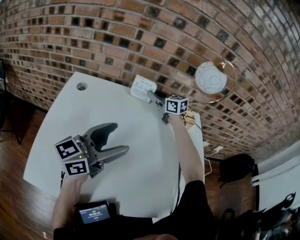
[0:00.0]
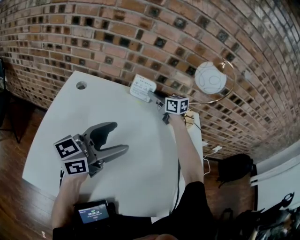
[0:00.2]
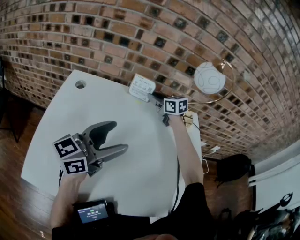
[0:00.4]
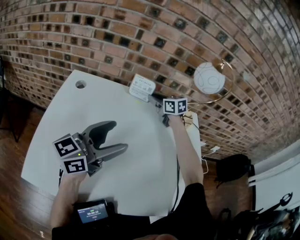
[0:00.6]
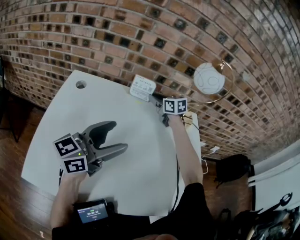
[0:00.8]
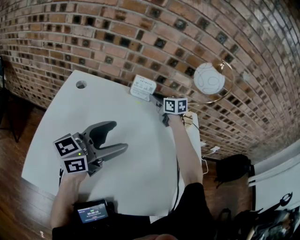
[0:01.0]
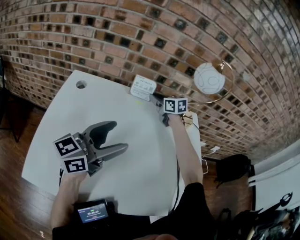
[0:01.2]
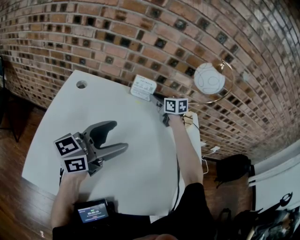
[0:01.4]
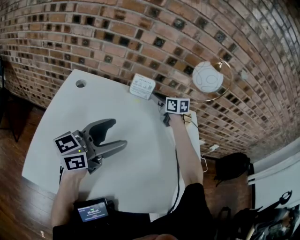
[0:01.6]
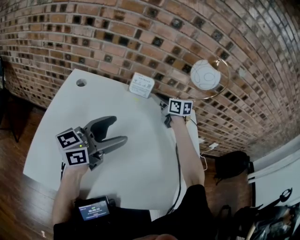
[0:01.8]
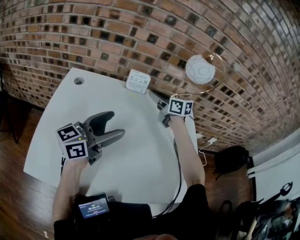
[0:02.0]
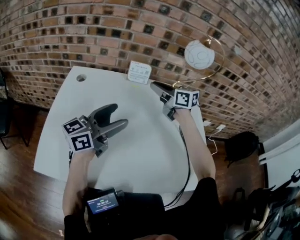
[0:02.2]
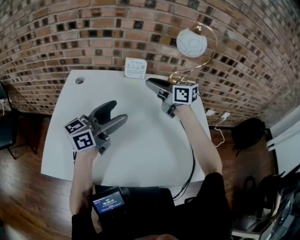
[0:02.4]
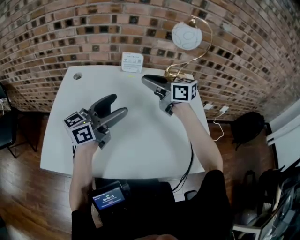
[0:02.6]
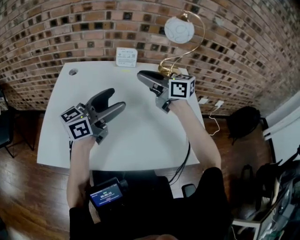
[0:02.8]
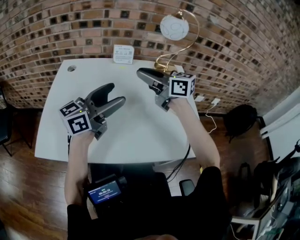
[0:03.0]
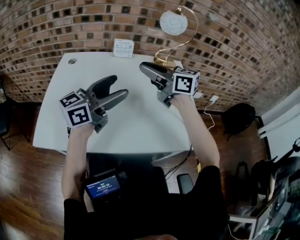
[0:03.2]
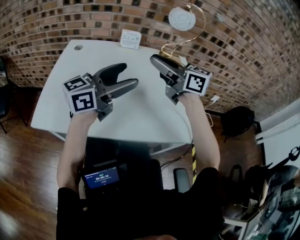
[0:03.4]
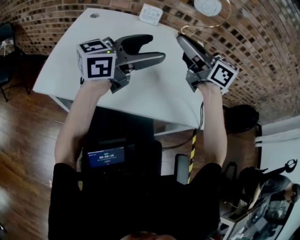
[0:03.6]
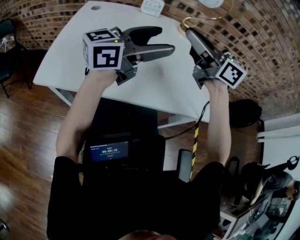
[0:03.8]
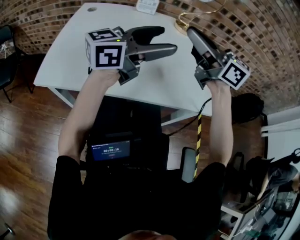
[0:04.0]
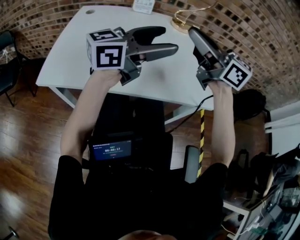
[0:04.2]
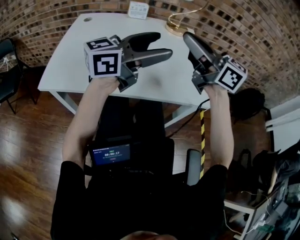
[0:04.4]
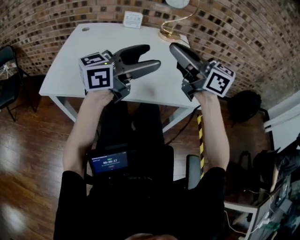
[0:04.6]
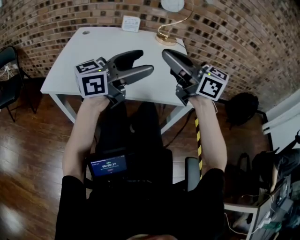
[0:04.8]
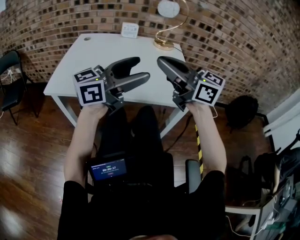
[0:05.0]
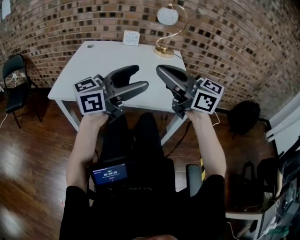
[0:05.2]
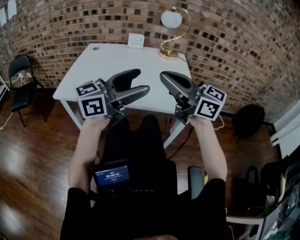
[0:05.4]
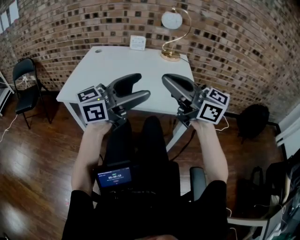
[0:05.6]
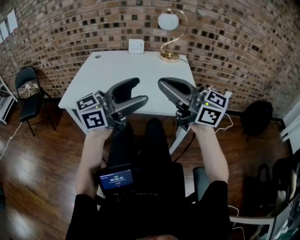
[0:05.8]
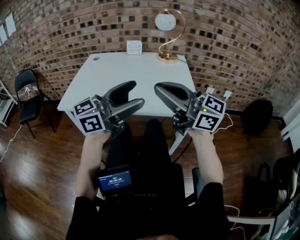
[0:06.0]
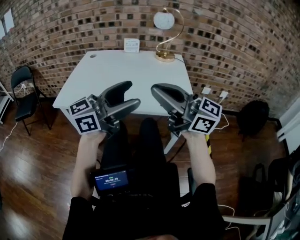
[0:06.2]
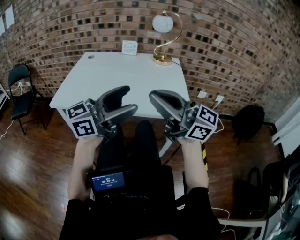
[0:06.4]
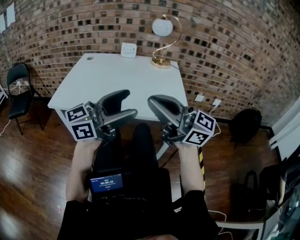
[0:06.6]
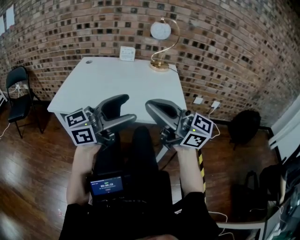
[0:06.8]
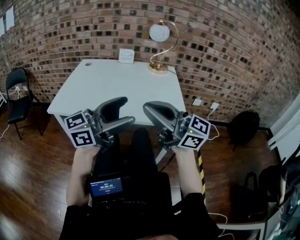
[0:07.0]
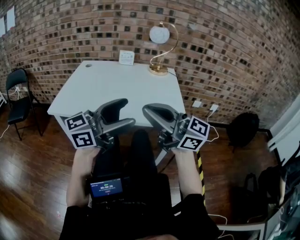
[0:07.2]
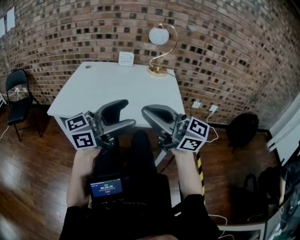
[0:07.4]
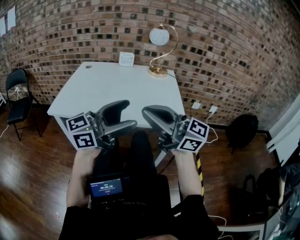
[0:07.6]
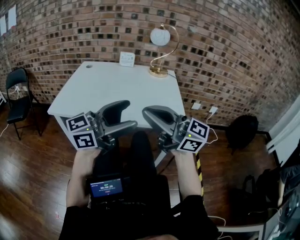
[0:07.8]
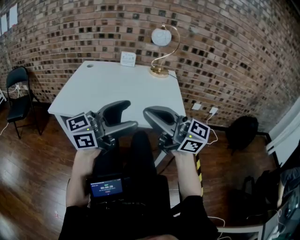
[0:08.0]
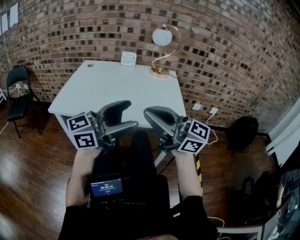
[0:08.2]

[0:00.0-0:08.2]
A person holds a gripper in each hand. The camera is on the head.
0:00.0 to 0:01.6: The grippers make only small movements.
0:01.6 to 0:03.2: The left gripper shifts about 10 cm backward and to the right. The right gripper heads backward and upward, covering some 35 cm, and rotates some 30 degrees.
0:03.2 to 0:05.0: The left gripper changes place by about 25 cm. The right gripper shifts by some 30 cm.
0:05.0 to 0:06.6: The left gripper shifts by approximately 5 cm, while the right gripper changes place by about 10 cm.
0:06.6 to 0:08.2: The grippers stay close to where they were, moving slightly.

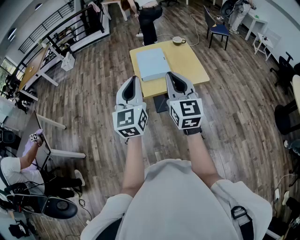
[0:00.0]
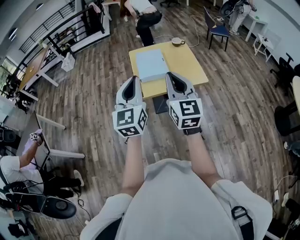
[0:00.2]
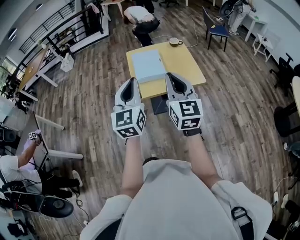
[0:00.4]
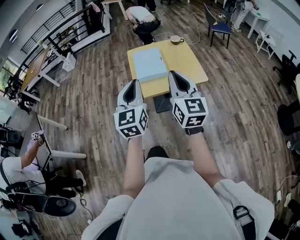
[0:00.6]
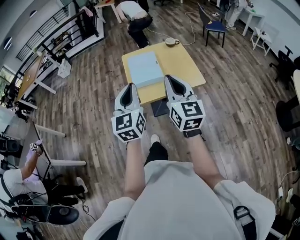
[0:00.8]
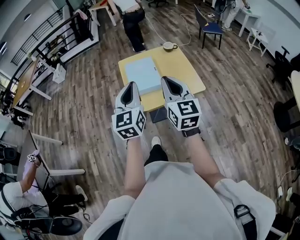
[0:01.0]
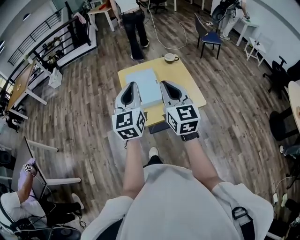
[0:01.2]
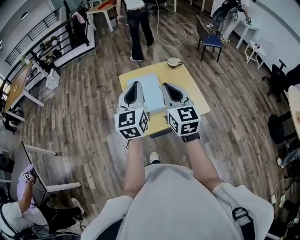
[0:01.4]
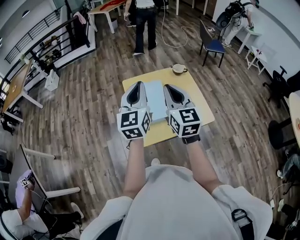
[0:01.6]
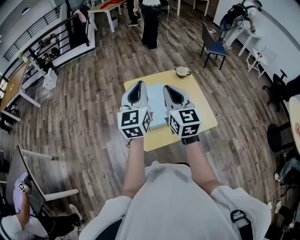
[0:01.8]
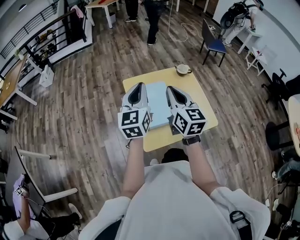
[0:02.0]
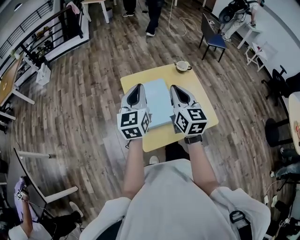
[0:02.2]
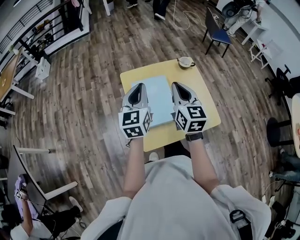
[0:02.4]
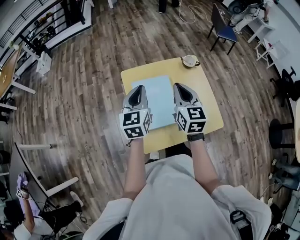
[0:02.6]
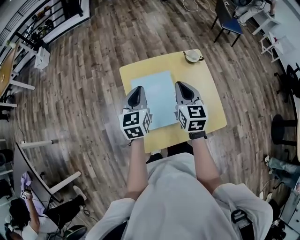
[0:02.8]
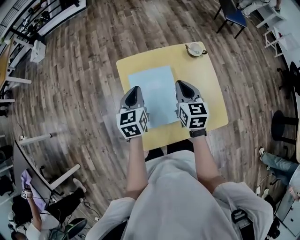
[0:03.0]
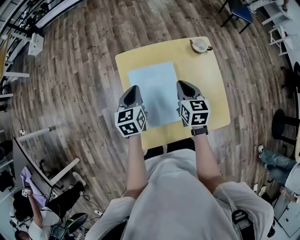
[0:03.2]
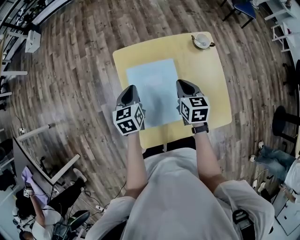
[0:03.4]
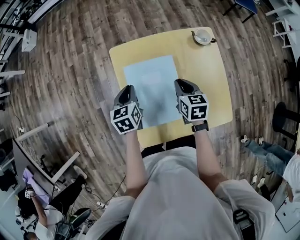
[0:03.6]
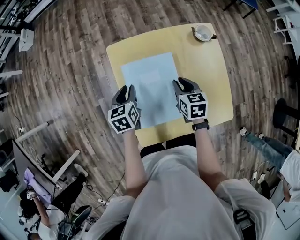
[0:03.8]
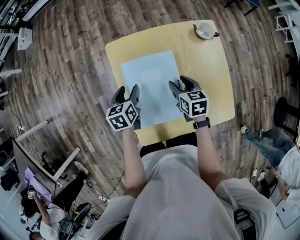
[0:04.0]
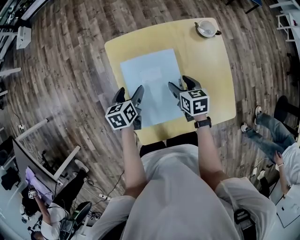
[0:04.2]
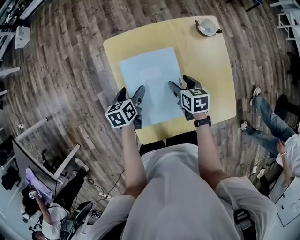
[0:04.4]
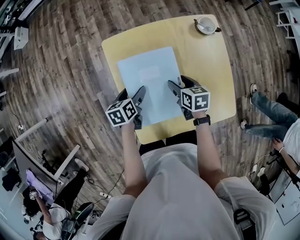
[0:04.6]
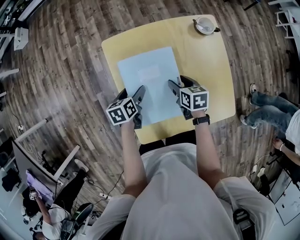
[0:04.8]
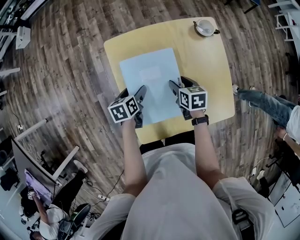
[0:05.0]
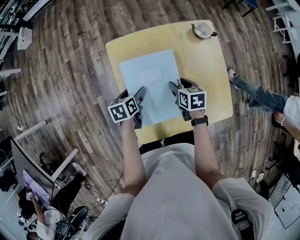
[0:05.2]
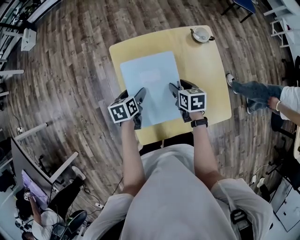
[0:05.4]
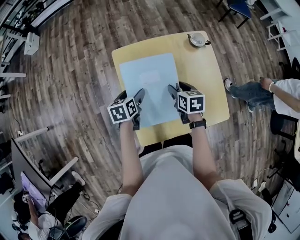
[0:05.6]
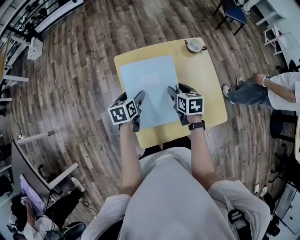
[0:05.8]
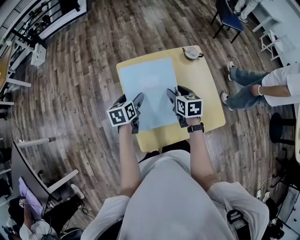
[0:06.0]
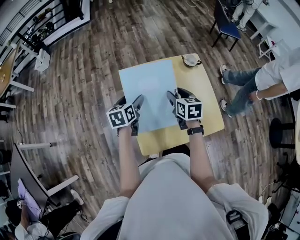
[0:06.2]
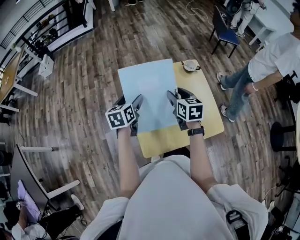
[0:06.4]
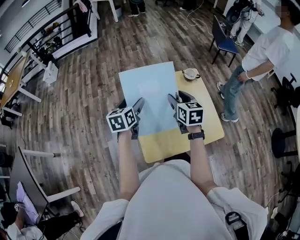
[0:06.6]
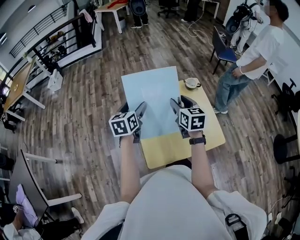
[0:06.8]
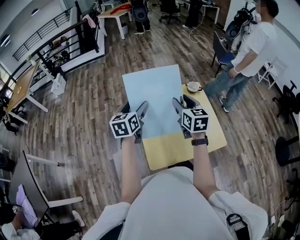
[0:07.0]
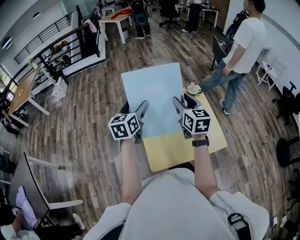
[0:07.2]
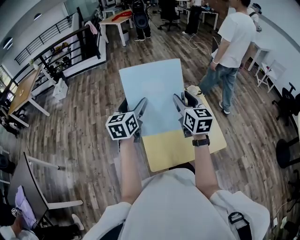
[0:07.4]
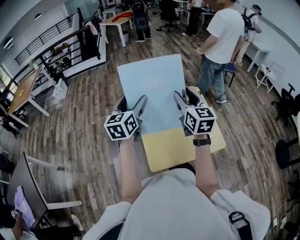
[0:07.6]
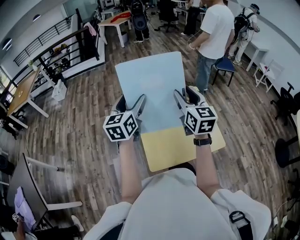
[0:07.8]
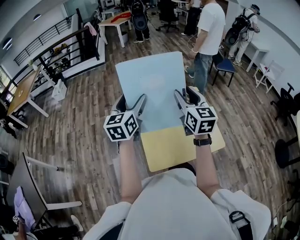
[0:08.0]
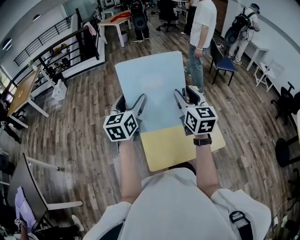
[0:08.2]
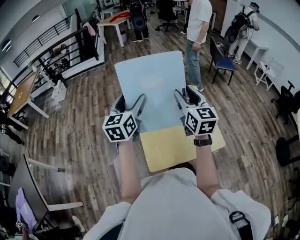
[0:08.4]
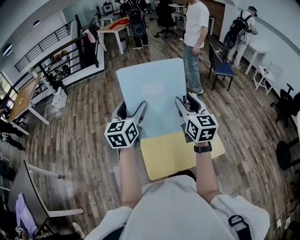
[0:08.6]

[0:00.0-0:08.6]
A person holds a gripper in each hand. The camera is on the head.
0:00.0 to 0:01.4: Both grippers travel together forward, about 25 cm.
0:01.4 to 0:02.8: The two grippers go roughly 30 cm forward and downward. The left gripper rotates about 20 degrees.
0:02.8 to 0:04.4: The grippers both shift downward by roughly 25 cm. The left gripper turns by roughly 40 degrees, and opens its fingers, while the right gripper points its fingers about 30 degrees further downward, and opens up.
0:04.4 to 0:05.8: Both grippers travel together upward, about 10 cm.
0:05.8 to 0:07.2: The grippers both shift upward by about 25 cm. The left gripper rotates roughly 30 degrees. The right gripper tips its fingers upward by about 30 degrees.
0:07.2 to 0:08.6: Both grippers move upward, approximately 10 cm.

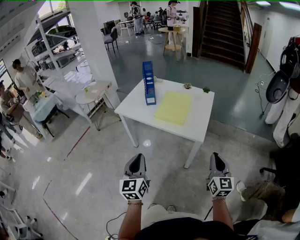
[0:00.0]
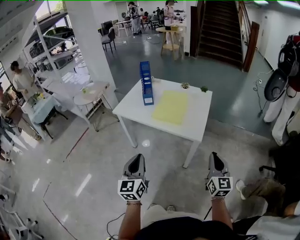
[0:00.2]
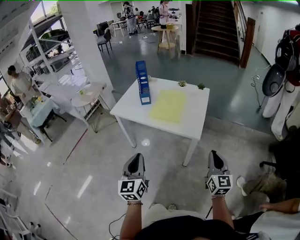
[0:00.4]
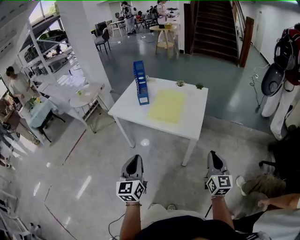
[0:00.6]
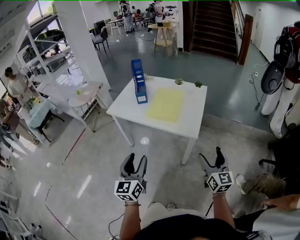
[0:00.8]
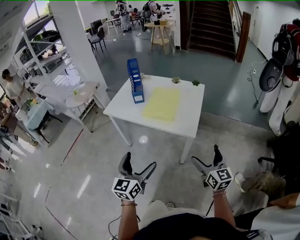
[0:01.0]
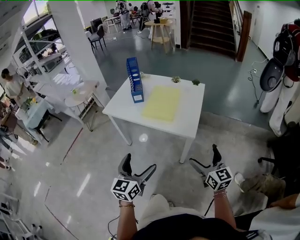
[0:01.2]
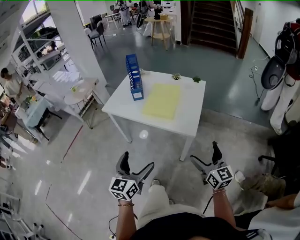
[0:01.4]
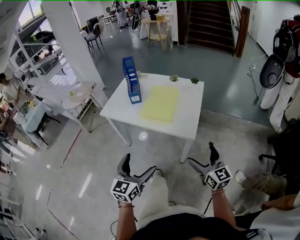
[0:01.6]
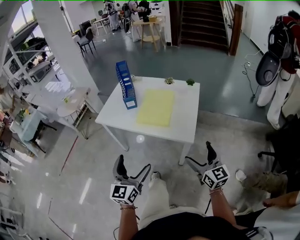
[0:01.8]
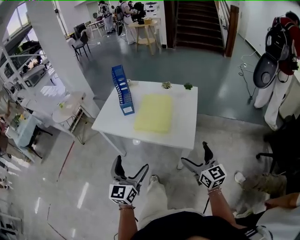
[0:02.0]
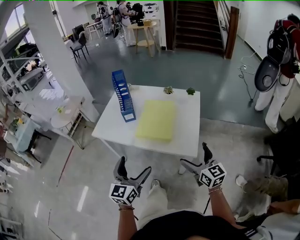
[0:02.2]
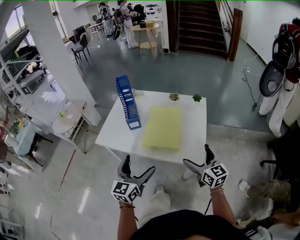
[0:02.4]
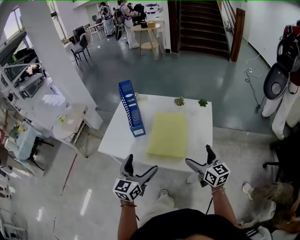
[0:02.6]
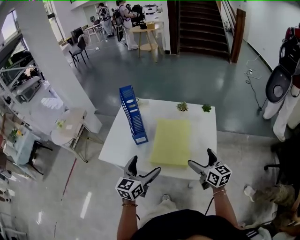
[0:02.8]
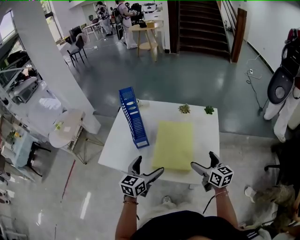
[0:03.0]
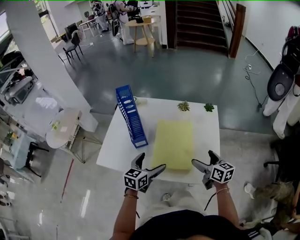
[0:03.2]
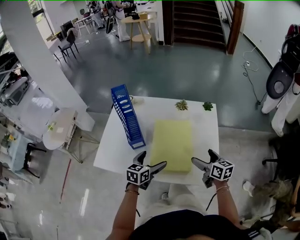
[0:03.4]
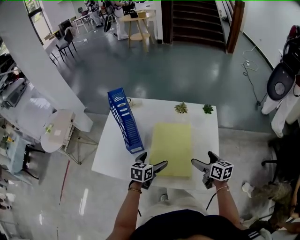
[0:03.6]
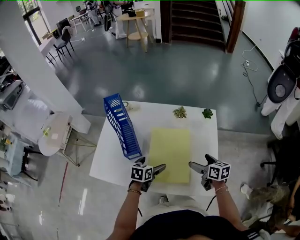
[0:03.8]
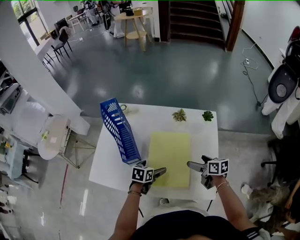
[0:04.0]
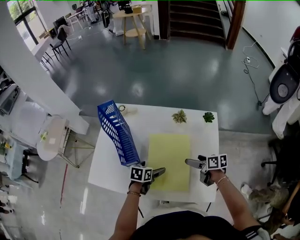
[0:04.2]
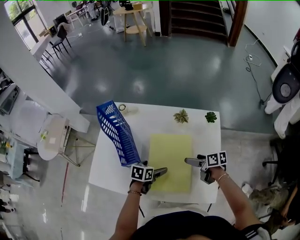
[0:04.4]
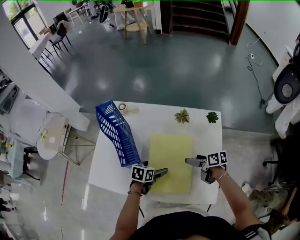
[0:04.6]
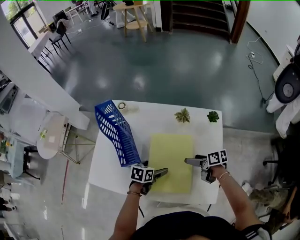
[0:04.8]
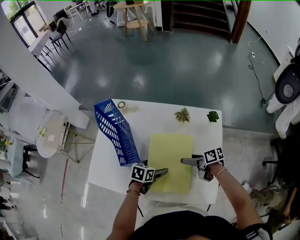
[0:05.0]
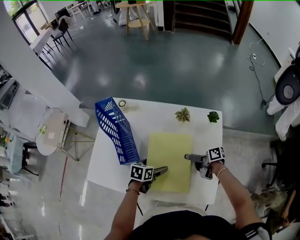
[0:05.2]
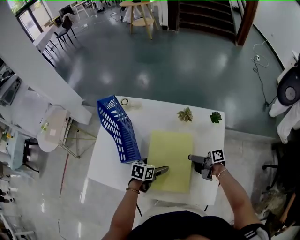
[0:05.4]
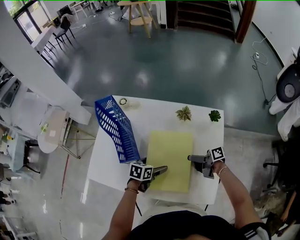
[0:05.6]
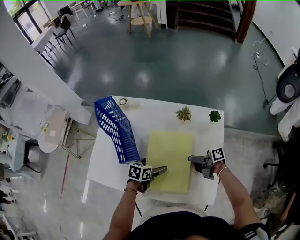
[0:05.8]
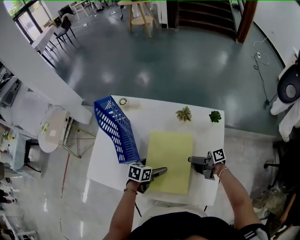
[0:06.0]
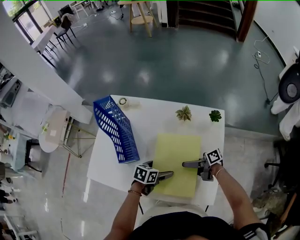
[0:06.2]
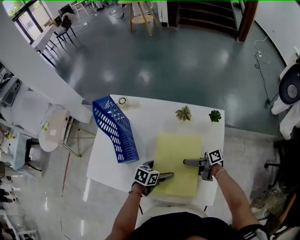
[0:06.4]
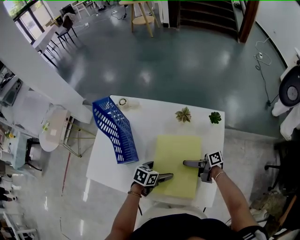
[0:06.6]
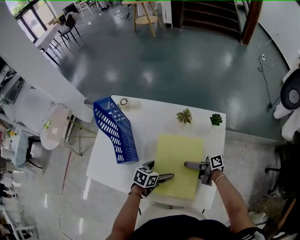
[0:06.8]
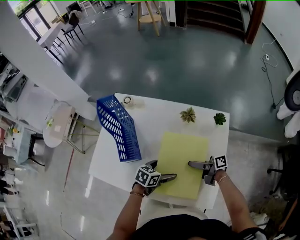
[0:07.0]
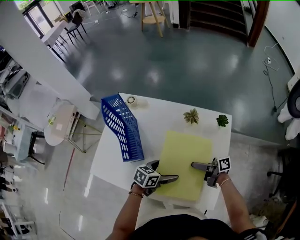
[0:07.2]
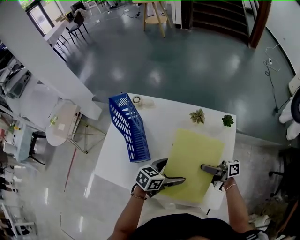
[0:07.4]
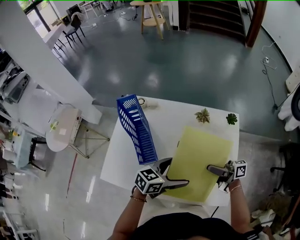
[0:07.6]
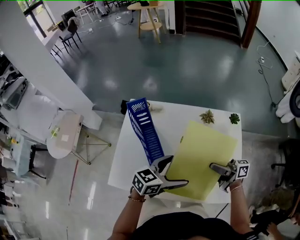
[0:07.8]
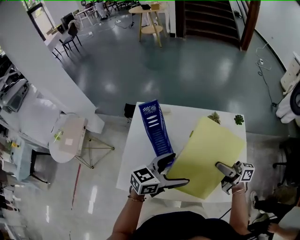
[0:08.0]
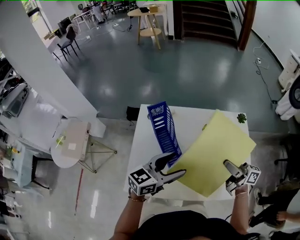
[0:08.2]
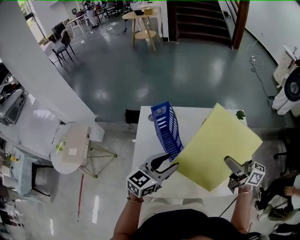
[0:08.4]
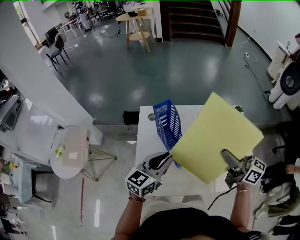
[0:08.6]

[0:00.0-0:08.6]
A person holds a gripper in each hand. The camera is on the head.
0:00.0 to 0:01.4: The left gripper is displaced to the right by approximately 5 cm, and opens its fingers. The right gripper opens up.
0:01.4 to 0:02.8: Both grippers travel together forward, about 35 cm.
0:02.8 to 0:04.4: The left gripper goes approximately 30 cm downward and forward, and tilts its fingers about 40 degrees downward, while the right gripper travels forward and downward by some 25 cm, and rotates roughly 50 degrees.
0:04.4 to 0:05.8: The right gripper swivels roughly 30 degrees.
0:05.8 to 0:07.2: The left gripper moves some 10 cm, while the right gripper closes its fingers.
0:07.2 to 0:08.6: The left gripper moves roughly 35 cm, swivels about 40 degrees, and closes. Meanwhile the right gripper heads upward, covering some 25 cm, and swivels some 60 degrees.
